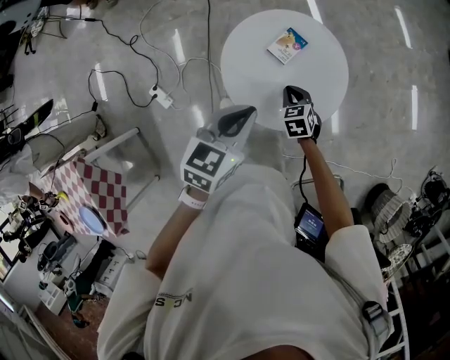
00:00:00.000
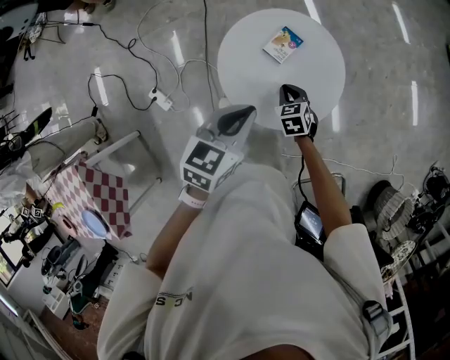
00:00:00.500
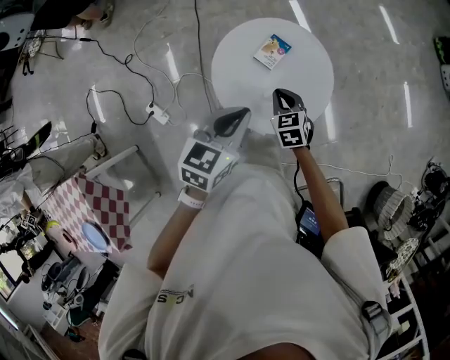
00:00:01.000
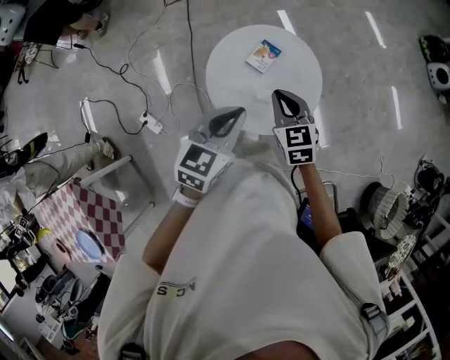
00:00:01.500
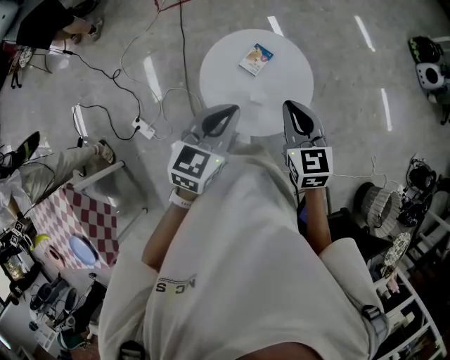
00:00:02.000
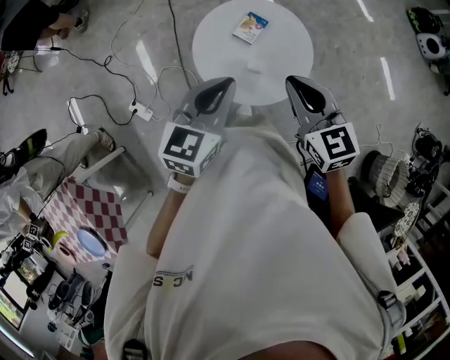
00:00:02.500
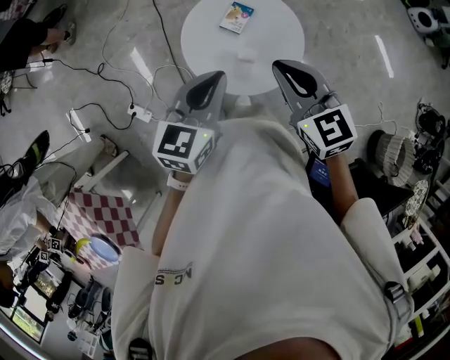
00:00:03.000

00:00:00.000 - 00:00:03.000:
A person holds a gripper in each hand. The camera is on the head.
00:00:00.000 - 00:00:01.500: The left gripper is displaced upward by some 5 cm. Meanwhile the right gripper shifts about 20 cm upward, and turns by approximately 20 degrees.
00:00:01.500 - 00:00:03.000: The right gripper shifts about 15 cm upward and backward.

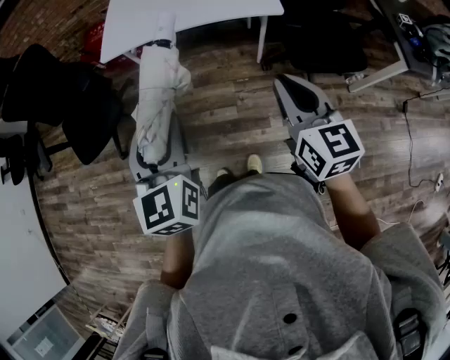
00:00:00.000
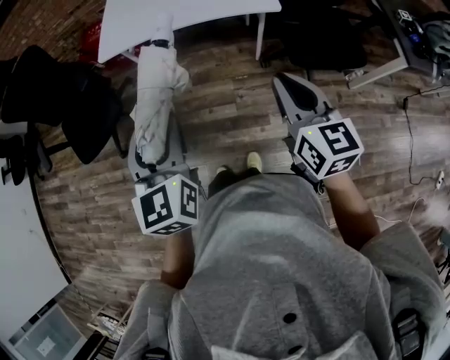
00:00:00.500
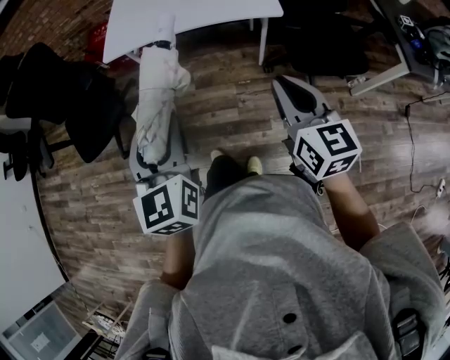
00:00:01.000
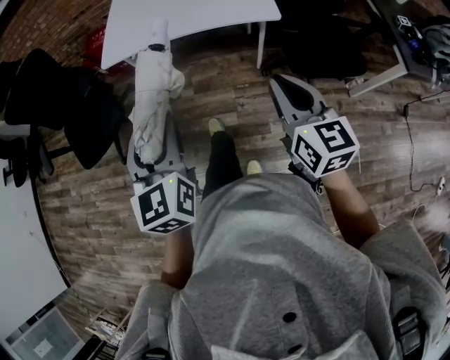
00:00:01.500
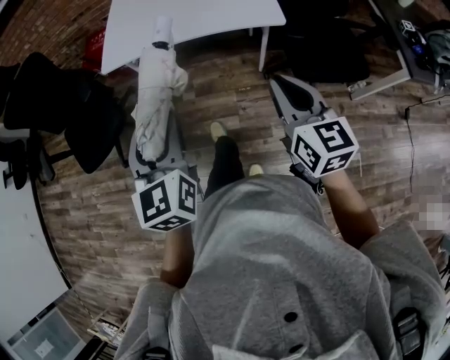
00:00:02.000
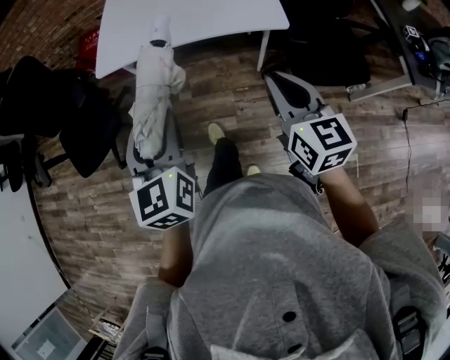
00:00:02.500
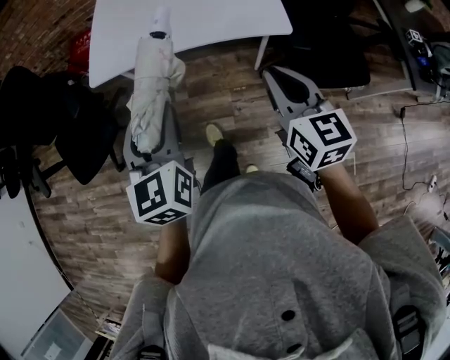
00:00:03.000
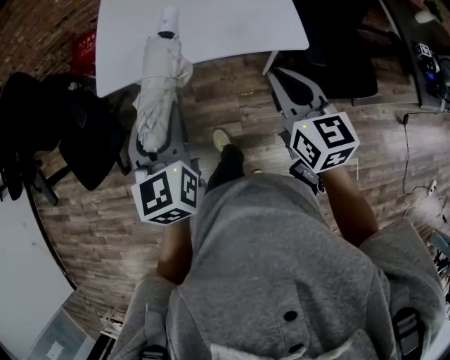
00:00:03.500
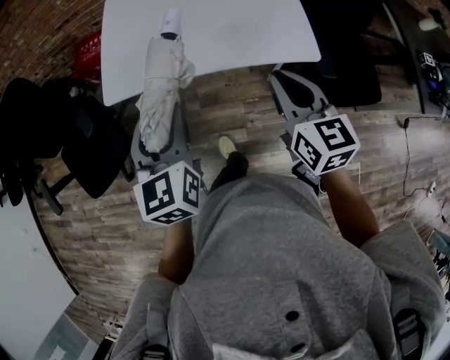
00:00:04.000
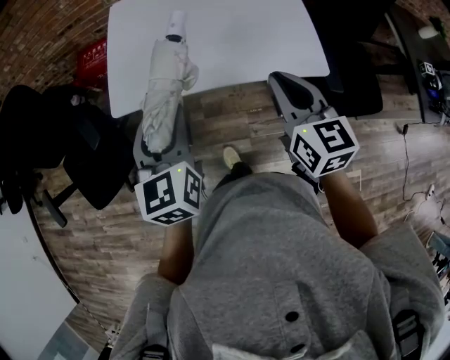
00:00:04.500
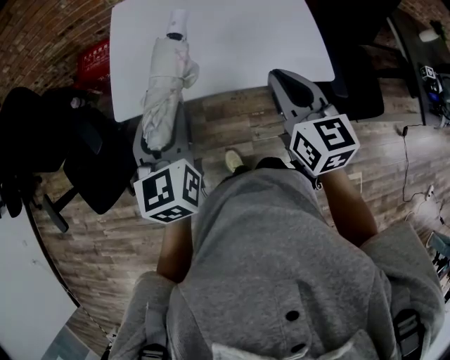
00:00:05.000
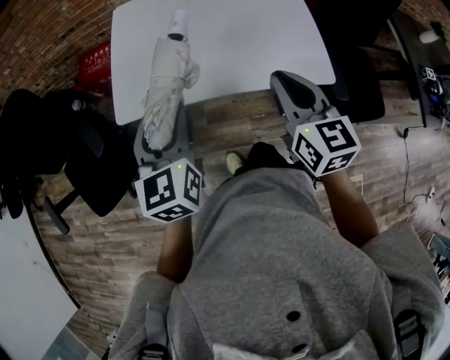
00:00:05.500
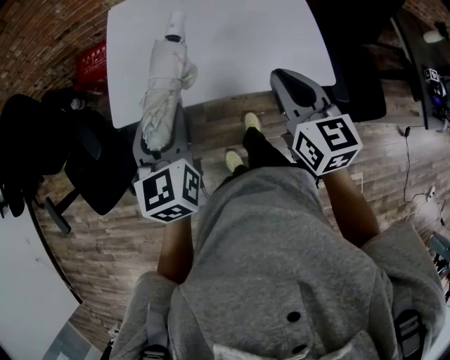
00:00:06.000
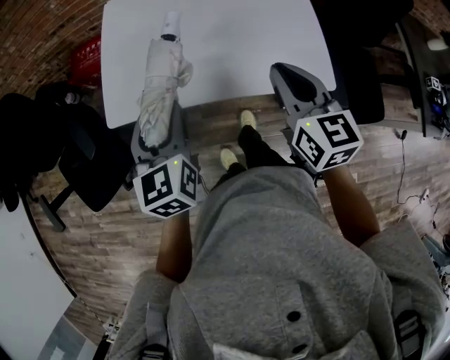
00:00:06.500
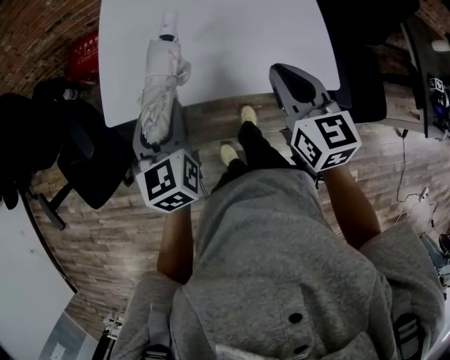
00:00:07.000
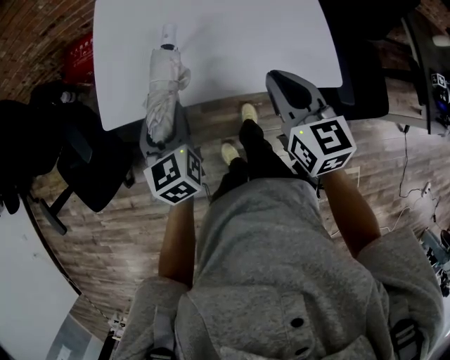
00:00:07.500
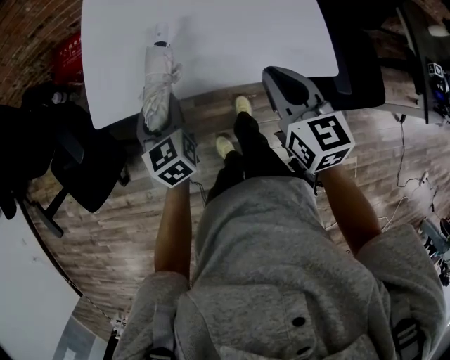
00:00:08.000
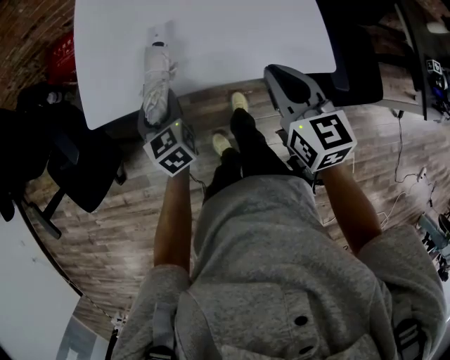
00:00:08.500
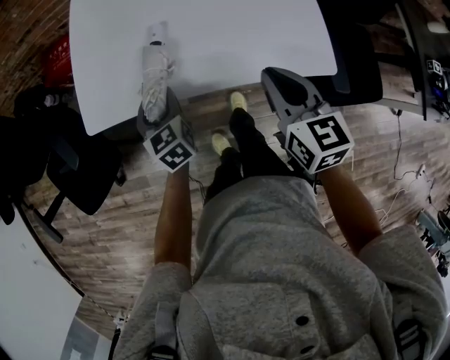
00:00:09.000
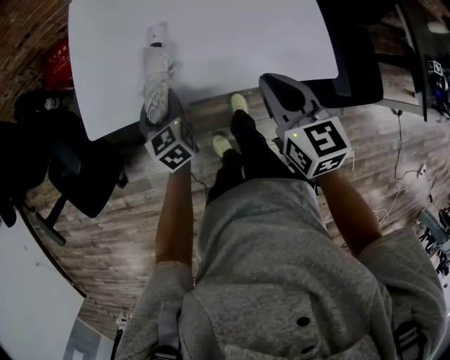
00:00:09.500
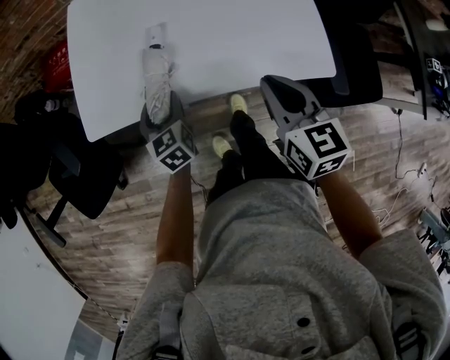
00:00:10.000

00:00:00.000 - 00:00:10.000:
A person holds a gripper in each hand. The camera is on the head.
00:00:00.000 - 00:00:02.000: Both grippers move forward, approximately 5 cm.
00:00:02.000 - 00:00:04.000: Both grippers move forward, about 25 cm.
00:00:04.000 - 00:00:06.000: The grippers both shift forward by approximately 10 cm.
00:00:06.000 - 00:00:08.000: The left gripper shifts some 15 cm downward. The right gripper is displaced downward by roughly 5 cm.
00:00:08.000 - 00:00:10.000: The left gripper travels downward by about 10 cm.

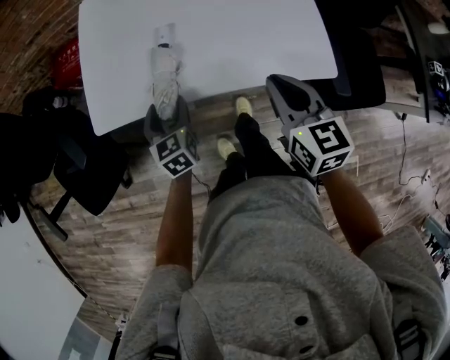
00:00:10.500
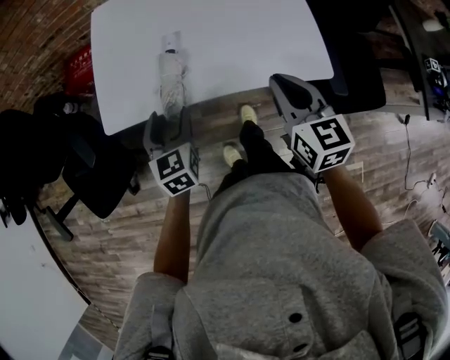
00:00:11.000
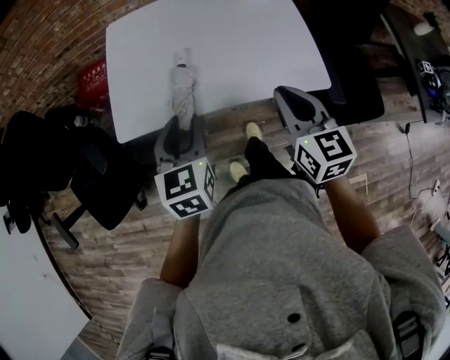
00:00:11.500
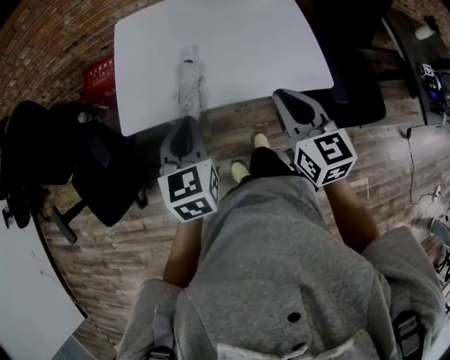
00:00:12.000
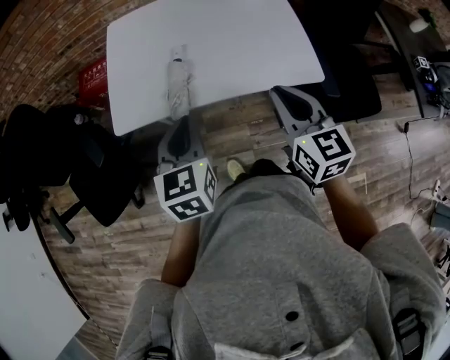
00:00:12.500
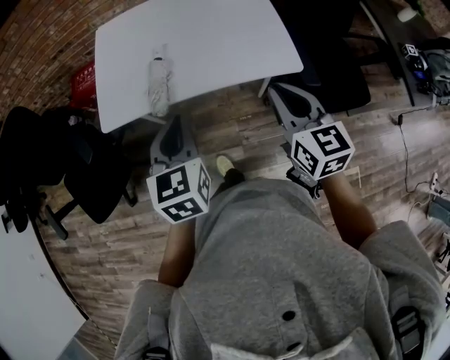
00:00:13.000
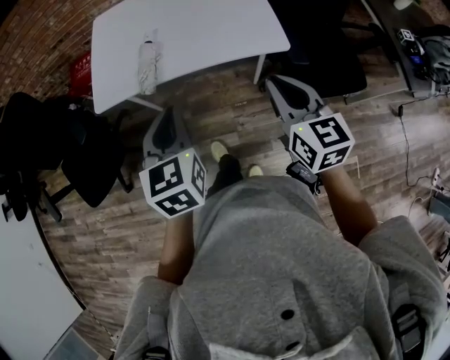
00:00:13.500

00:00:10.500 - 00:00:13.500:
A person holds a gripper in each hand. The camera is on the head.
00:00:10.500 - 00:00:12.000: The right gripper moves upward and backward, some 10 cm. Meanwhile the left gripper moves upward and backward, some 20 cm, and closes its fingers.
00:00:12.000 - 00:00:13.500: Both grippers move backward and to the right, roughly 20 cm.

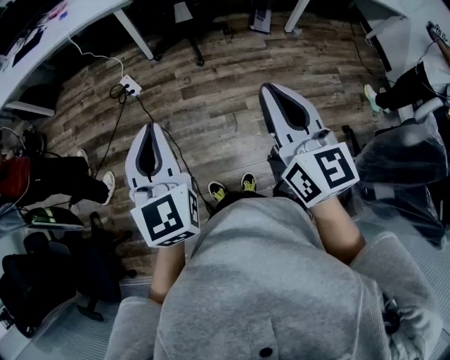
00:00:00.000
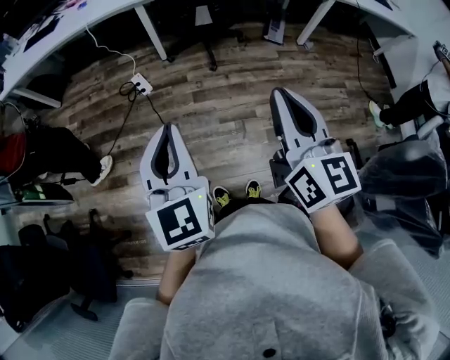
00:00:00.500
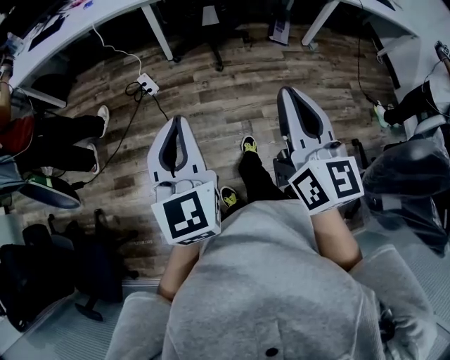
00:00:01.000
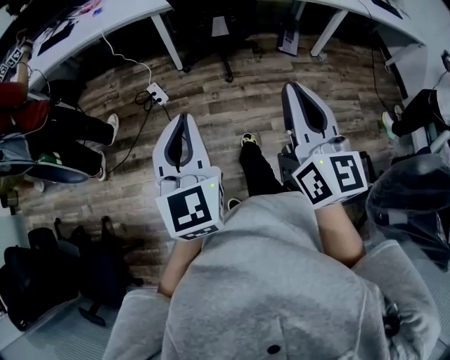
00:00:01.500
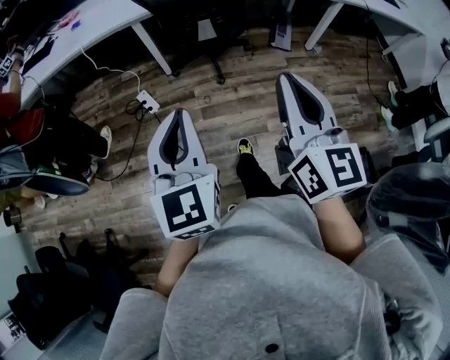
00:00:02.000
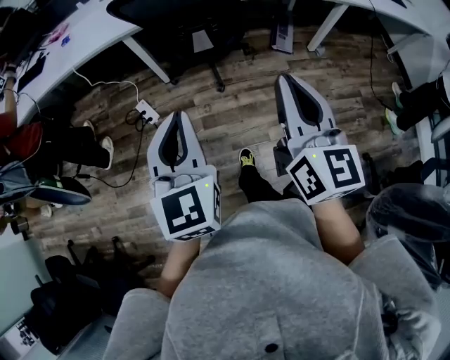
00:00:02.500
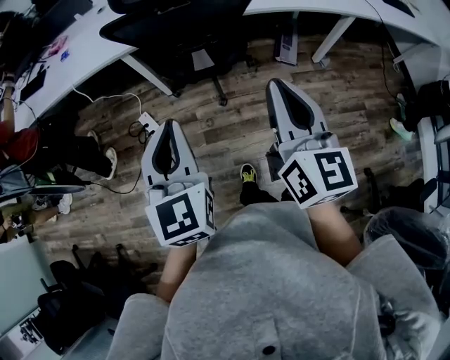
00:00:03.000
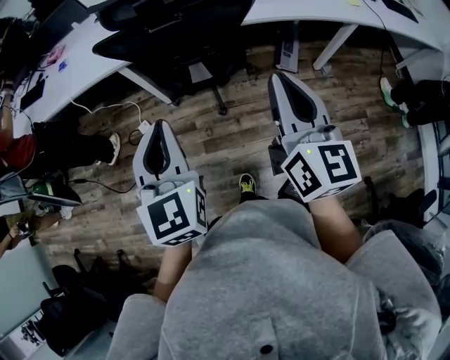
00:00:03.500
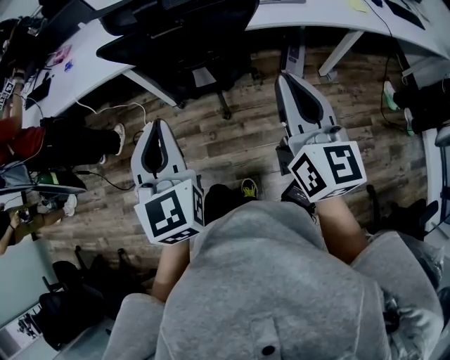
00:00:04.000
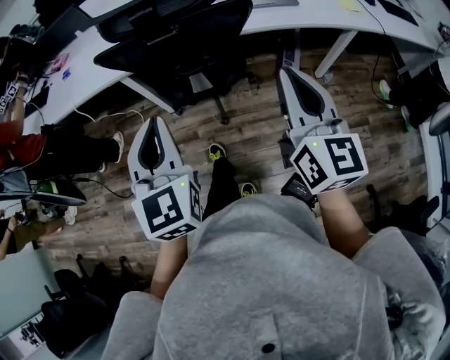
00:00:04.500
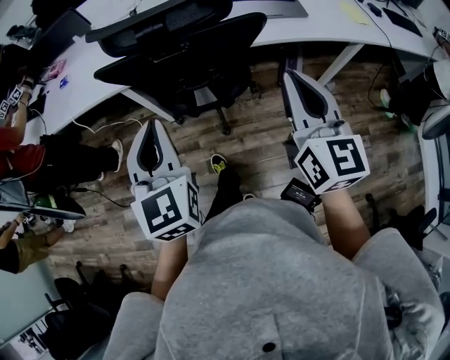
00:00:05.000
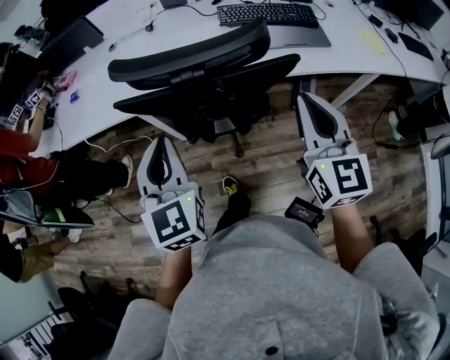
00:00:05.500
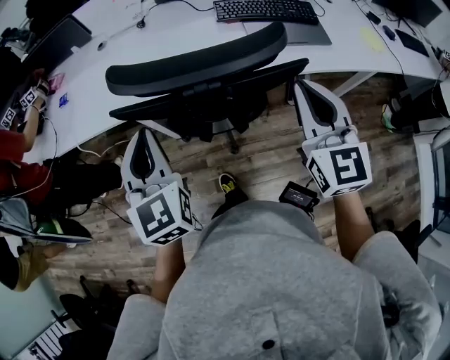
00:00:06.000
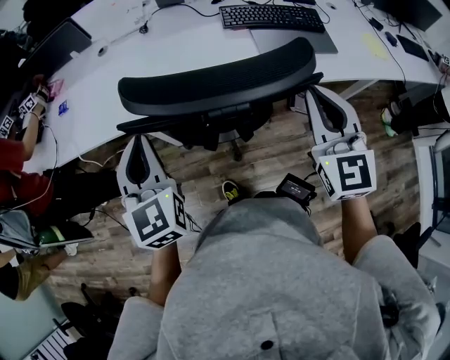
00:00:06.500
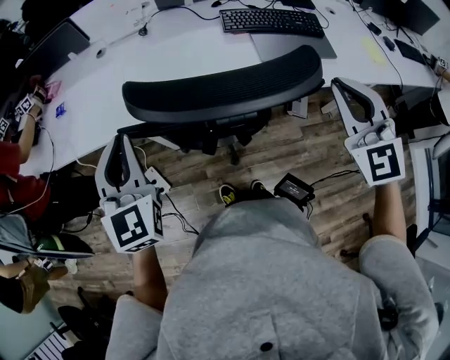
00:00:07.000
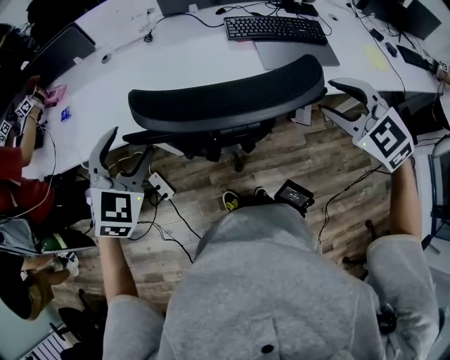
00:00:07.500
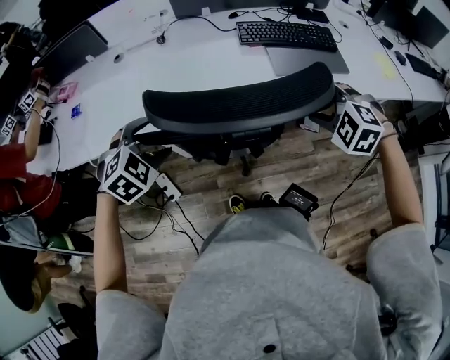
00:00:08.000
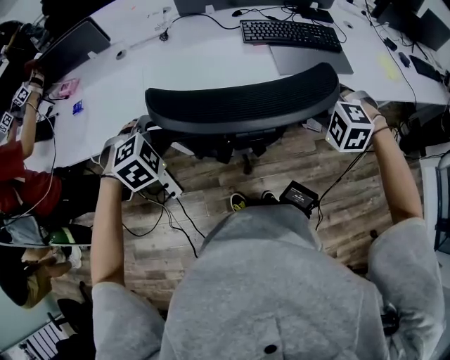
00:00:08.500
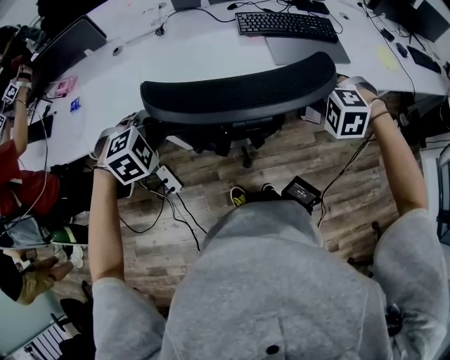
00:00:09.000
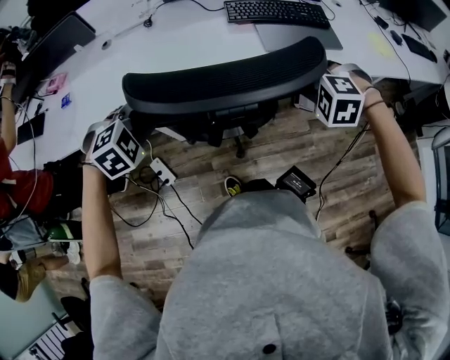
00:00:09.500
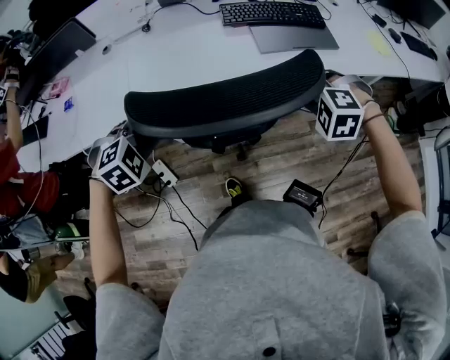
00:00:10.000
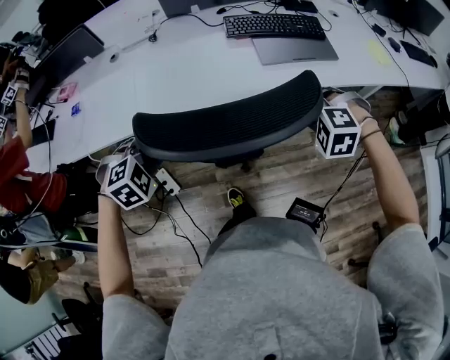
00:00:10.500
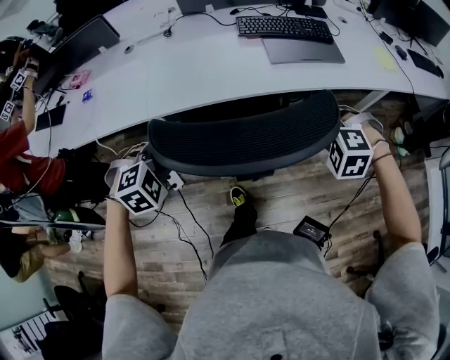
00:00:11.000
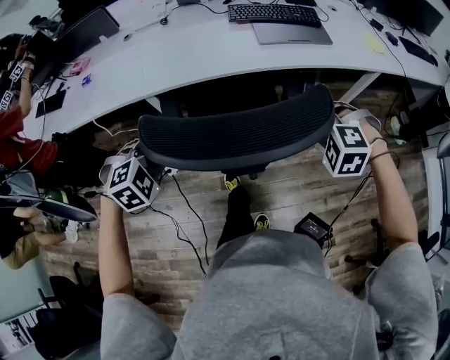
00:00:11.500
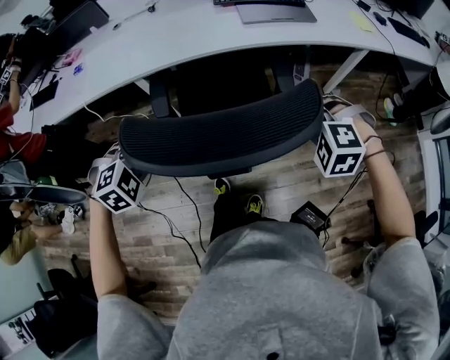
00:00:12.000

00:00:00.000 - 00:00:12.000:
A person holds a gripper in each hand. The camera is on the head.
00:00:00.000 - 00:00:02.000: The two grippers go roughly 15 cm forward.
00:00:02.000 - 00:00:04.000: The left gripper shifts some 25 cm forward. Meanwhile the right gripper is displaced forward and to the right by roughly 30 cm.
00:00:04.000 - 00:00:06.000: The two grippers go approximately 25 cm forward. The right gripper rotates approximately 20 degrees.
00:00:06.000 - 00:00:08.000: The left gripper moves downward, forward and to the left, approximately 15 cm, tips its fingers downward by some 40 degrees, and opens. The right gripper shifts some 15 cm downward and forward, tilts its fingers about 50 degrees downward, and opens.
00:00:08.000 - 00:00:10.000: The right gripper shifts by approximately 5 cm, and closes up; the left gripper ends up roughly 5 cm from where it was, and closes.
00:00:10.000 - 00:00:12.000: The grippers both shift backward by approximately 25 cm.
